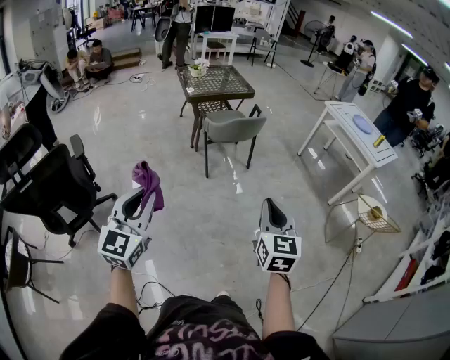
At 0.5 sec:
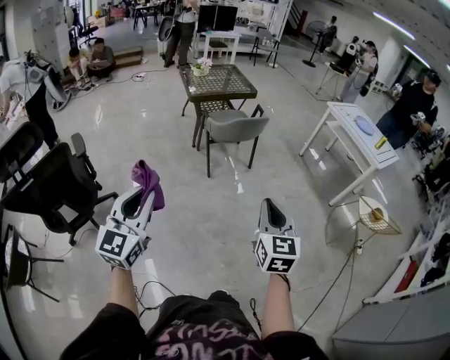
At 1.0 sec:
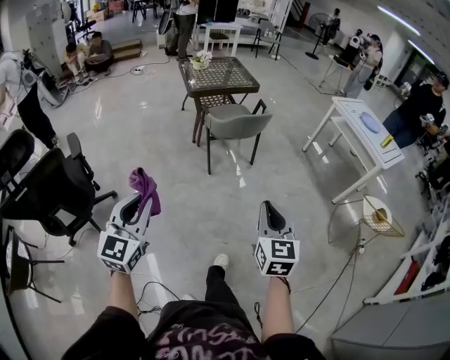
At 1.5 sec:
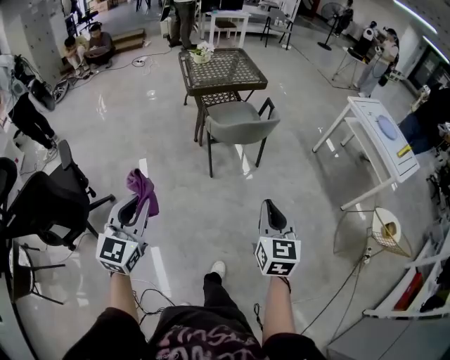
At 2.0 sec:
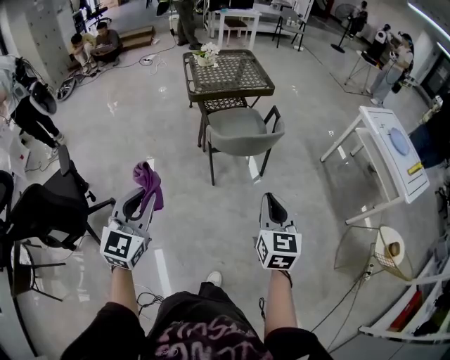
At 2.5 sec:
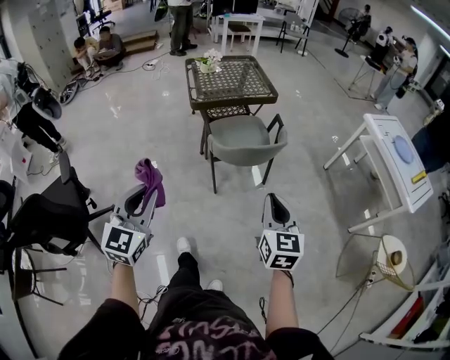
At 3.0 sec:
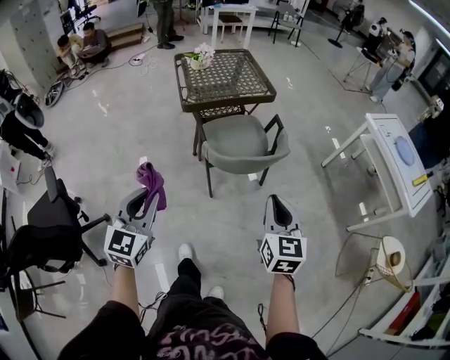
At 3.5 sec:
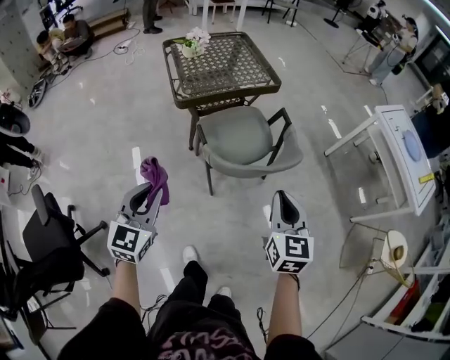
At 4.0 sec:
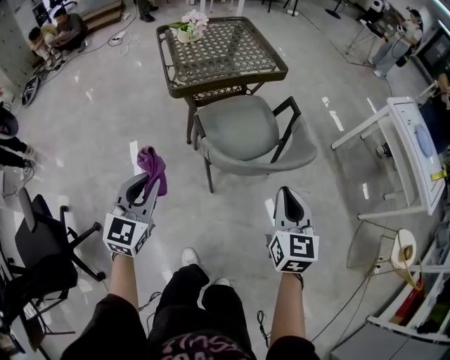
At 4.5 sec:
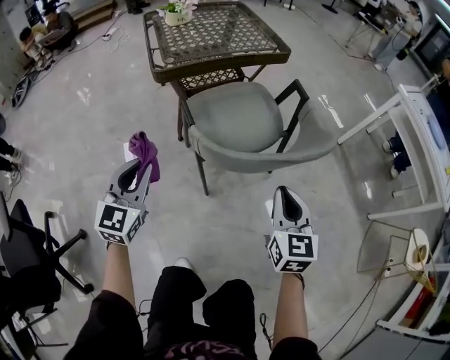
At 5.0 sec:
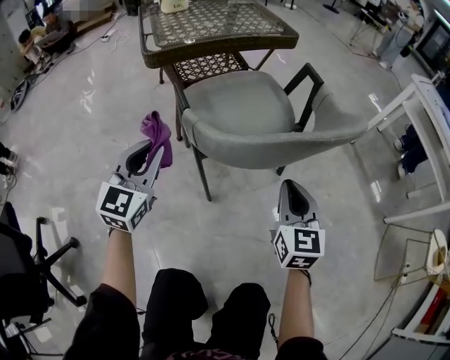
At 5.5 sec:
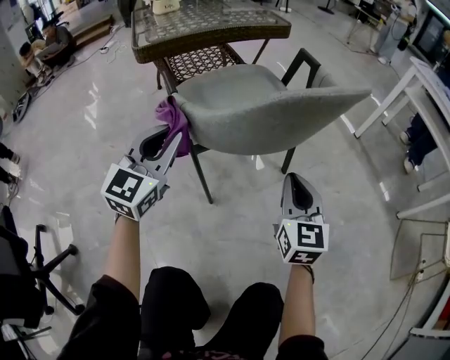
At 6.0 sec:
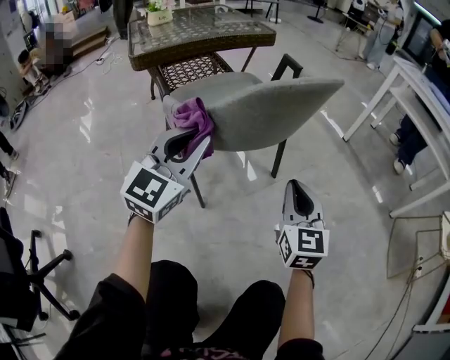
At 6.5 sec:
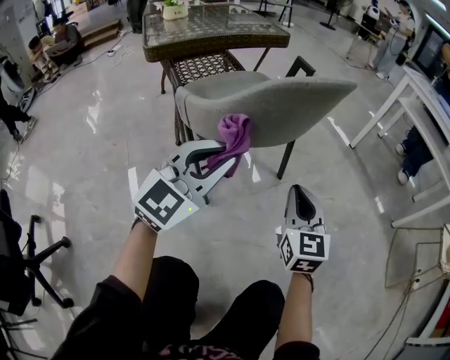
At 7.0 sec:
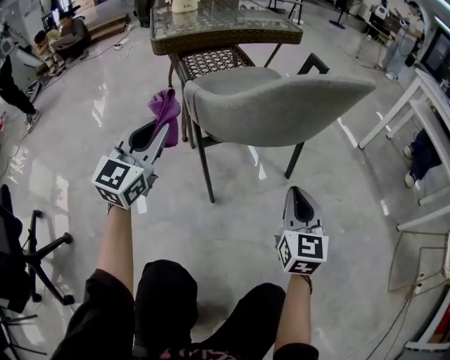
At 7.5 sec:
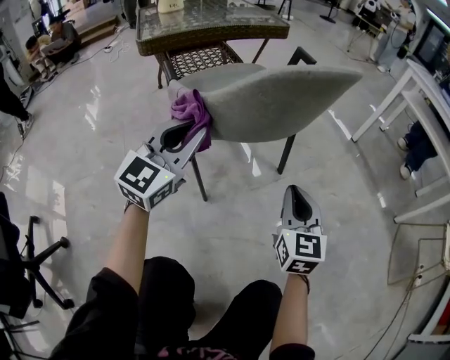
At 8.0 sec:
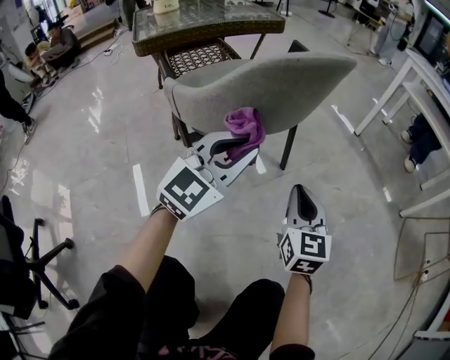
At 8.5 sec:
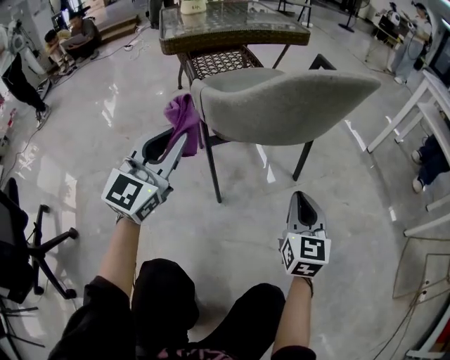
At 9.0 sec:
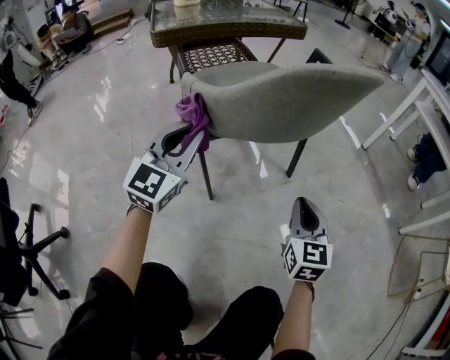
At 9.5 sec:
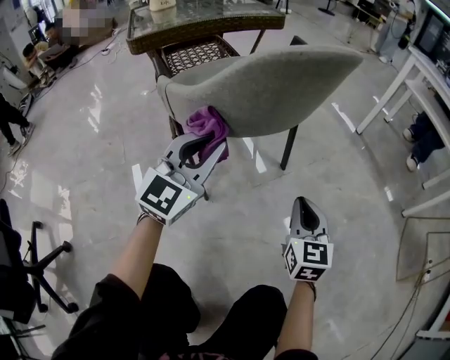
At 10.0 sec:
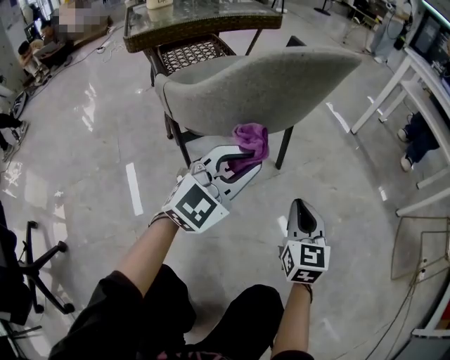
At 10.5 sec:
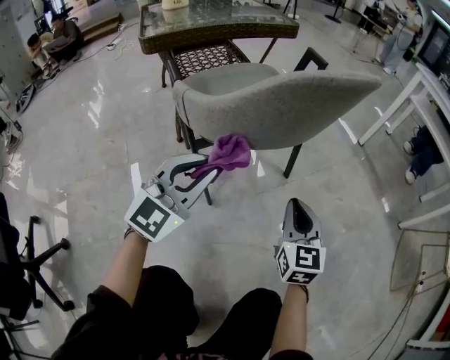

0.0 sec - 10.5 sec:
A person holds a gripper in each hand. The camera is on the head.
0.0 sec - 2.0 sec: The two grippers go about 35 cm forward.
2.0 sec - 4.0 sec: The grippers both shift forward and downward by approximately 40 cm.
4.0 sec - 6.5 sec: The right gripper shifts roughly 35 cm downward. Meanwhile the left gripper shifts roughly 35 cm downward and to the right, and swivels approximately 30 degrees.
6.5 sec - 8.5 sec: The left gripper swings left and right, approximately 25 cm each way, with 2 reversals, and swivels approximately 20 degrees. Meanwhile the right gripper heads downward, covering some 5 cm.
8.5 sec - 10.5 sec: The left gripper shifts approximately 10 cm to the right and downward.

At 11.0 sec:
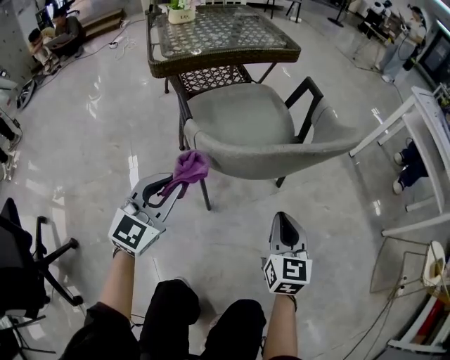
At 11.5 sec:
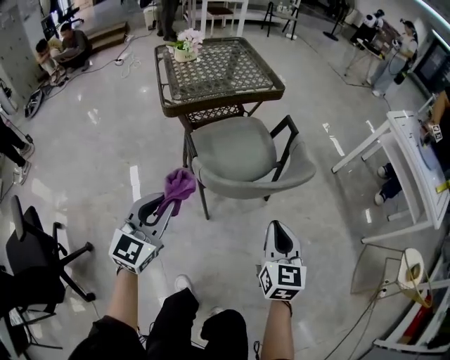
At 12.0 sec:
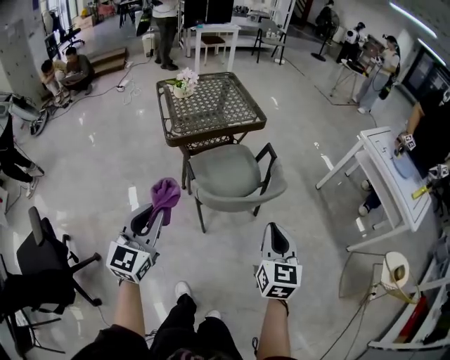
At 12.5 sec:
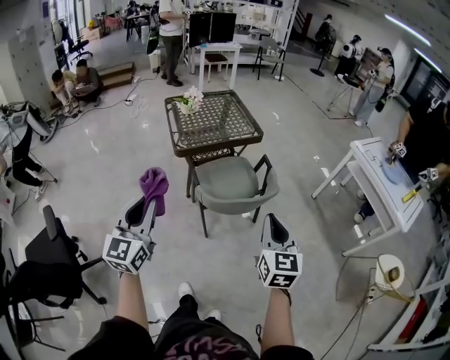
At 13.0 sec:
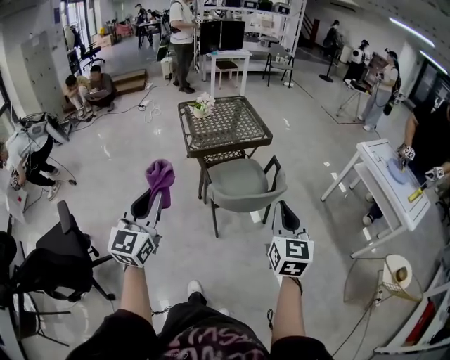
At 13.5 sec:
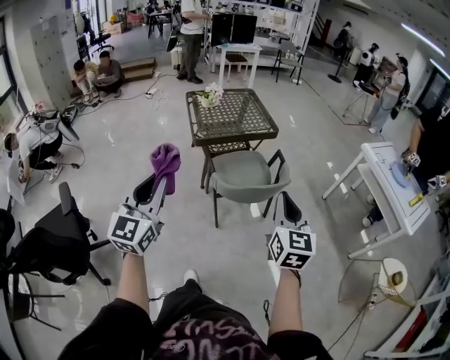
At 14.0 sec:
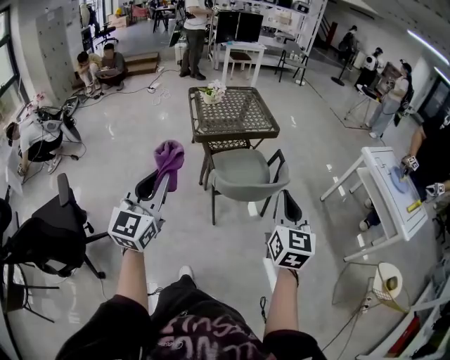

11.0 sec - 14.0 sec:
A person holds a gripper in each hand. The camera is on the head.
11.0 sec - 12.5 sec: The left gripper travels upward and backward by some 50 cm, and rotates about 20 degrees; the right gripper shifts about 50 cm upward.
12.5 sec - 14.0 sec: The left gripper travels backward by some 5 cm; the right gripper moves upward, roughly 5 cm.

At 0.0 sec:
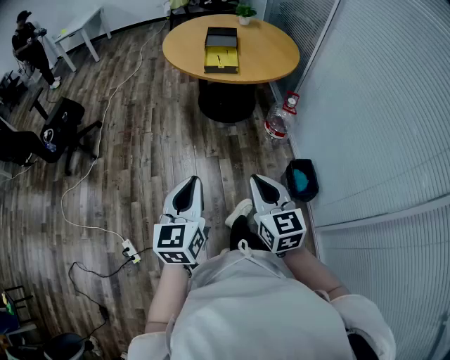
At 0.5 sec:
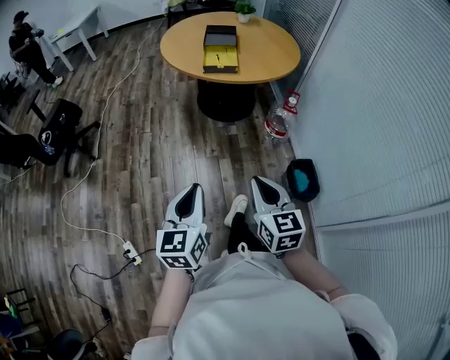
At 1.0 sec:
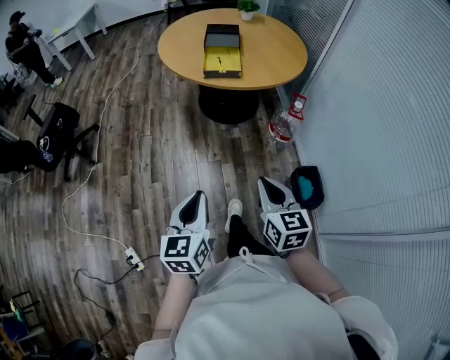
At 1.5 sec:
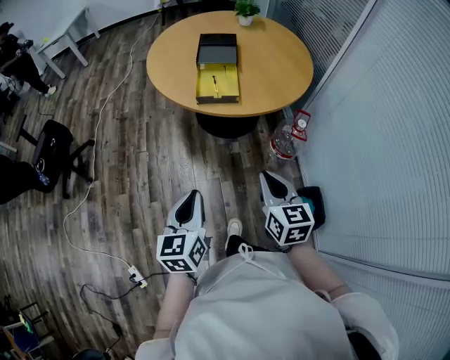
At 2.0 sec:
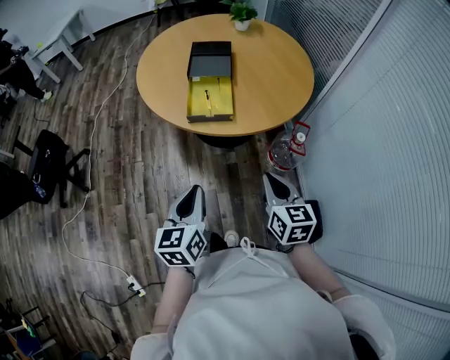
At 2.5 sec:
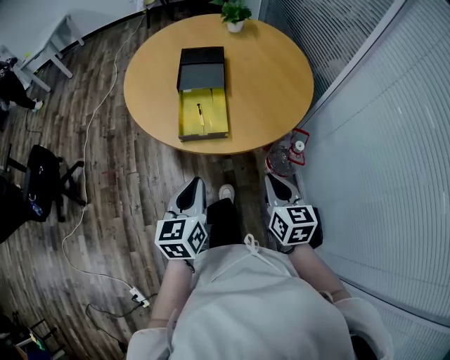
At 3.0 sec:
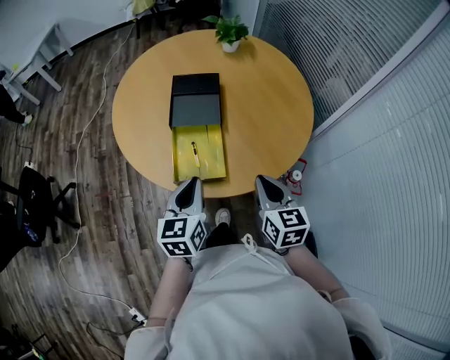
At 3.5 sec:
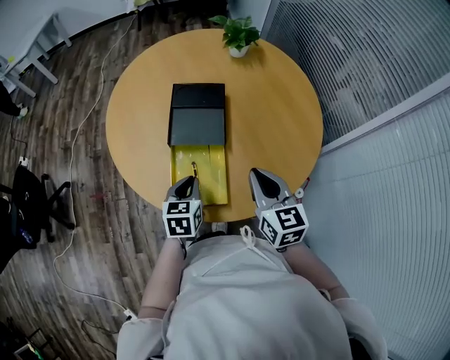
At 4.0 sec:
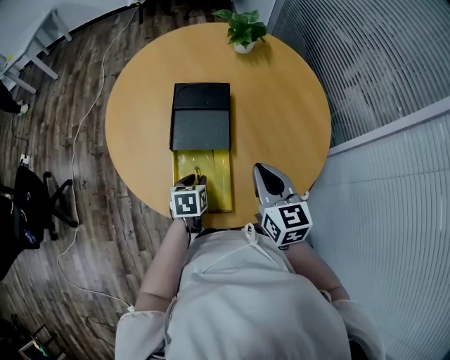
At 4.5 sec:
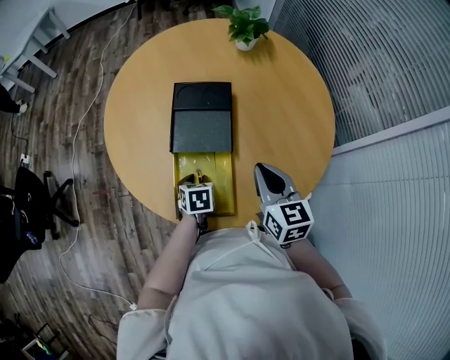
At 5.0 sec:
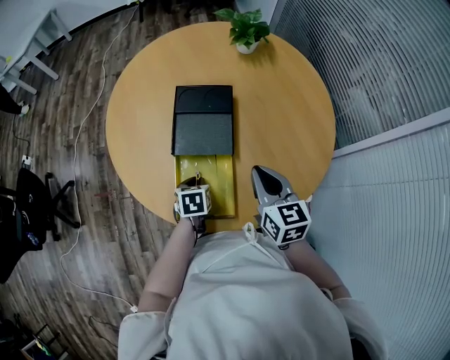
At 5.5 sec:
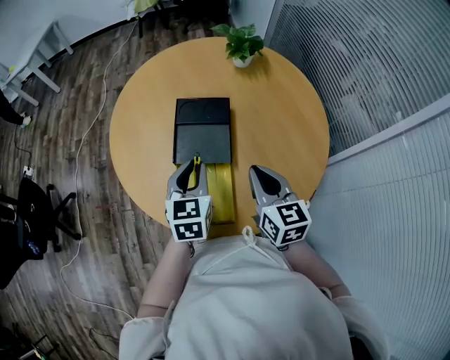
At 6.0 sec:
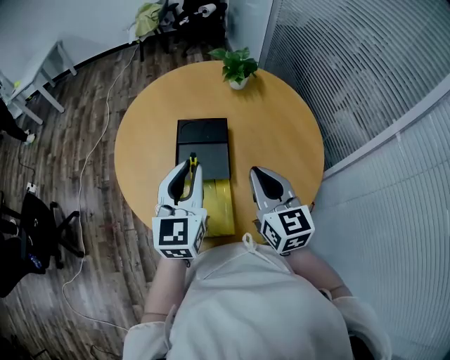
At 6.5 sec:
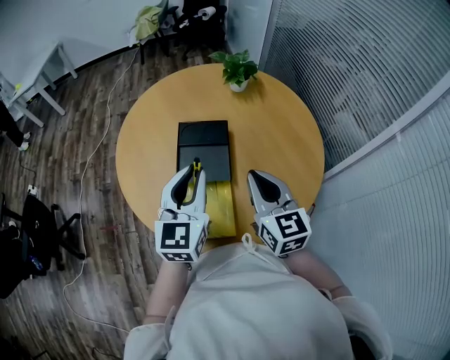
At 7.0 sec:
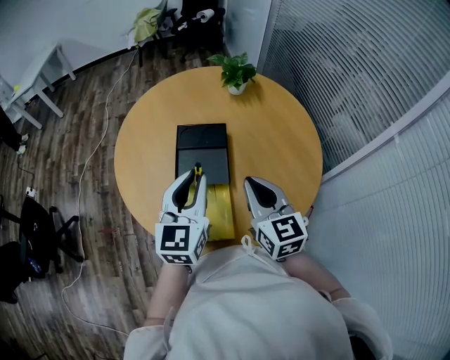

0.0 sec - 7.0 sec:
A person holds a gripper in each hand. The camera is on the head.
0.0 sec - 2.0 sec: The pair of grippers is taken forward, roughly 50 cm.
2.0 sec - 3.5 sec: Both grippers travel together forward, roughly 40 cm. The left gripper turns by roughly 20 degrees.
3.5 sec - 5.0 sec: The right gripper goes about 5 cm forward; the left gripper heads downward and forward, covering roughly 10 cm, and turns by some 20 degrees.
5.0 sec - 7.0 sec: The right gripper moves upward, roughly 10 cm. The left gripper is displaced upward by approximately 30 cm, and angles its fingers upward, by some 50 degrees.

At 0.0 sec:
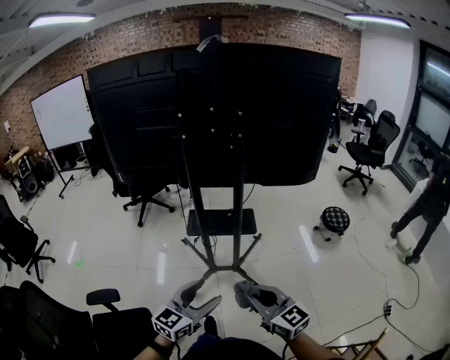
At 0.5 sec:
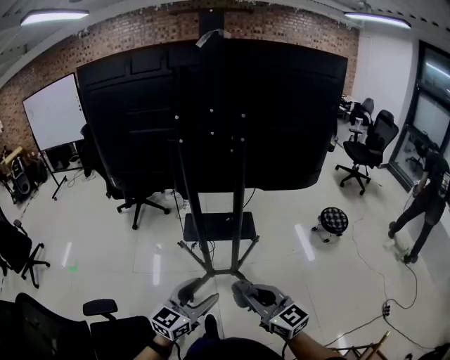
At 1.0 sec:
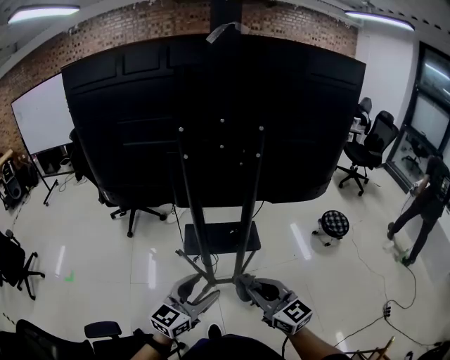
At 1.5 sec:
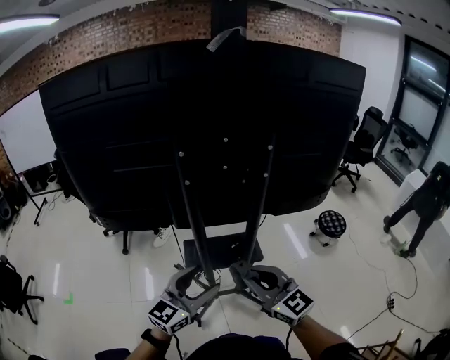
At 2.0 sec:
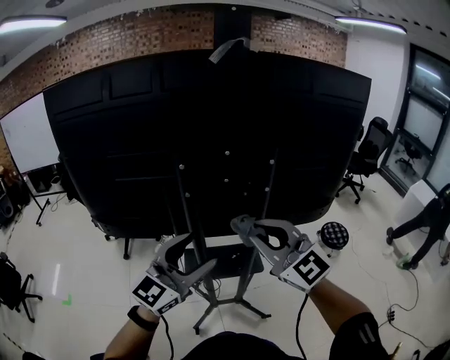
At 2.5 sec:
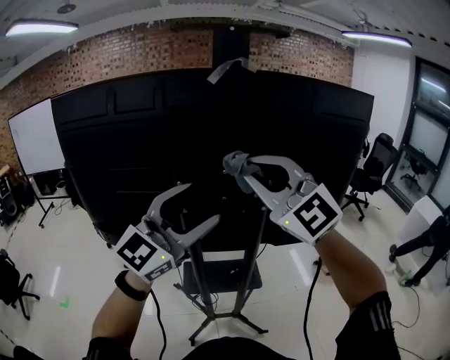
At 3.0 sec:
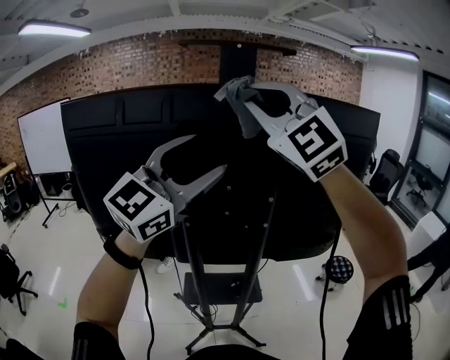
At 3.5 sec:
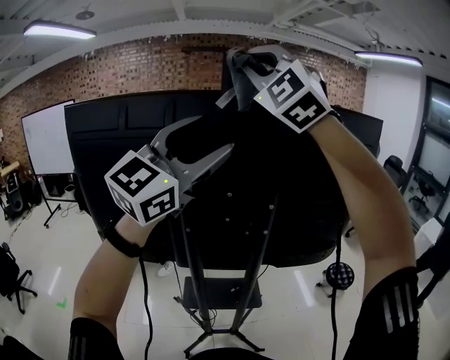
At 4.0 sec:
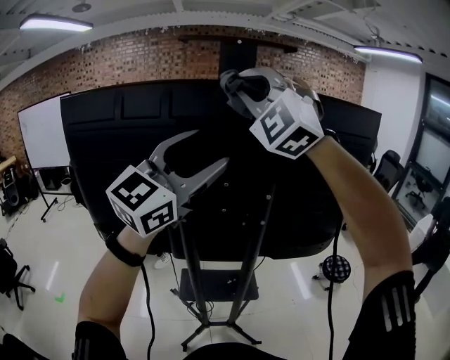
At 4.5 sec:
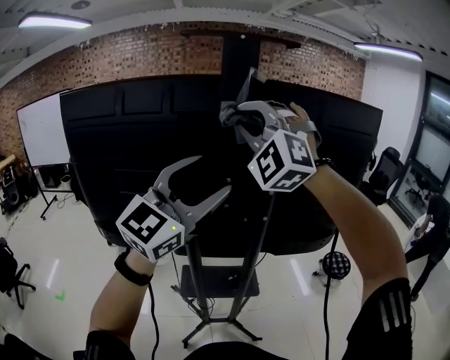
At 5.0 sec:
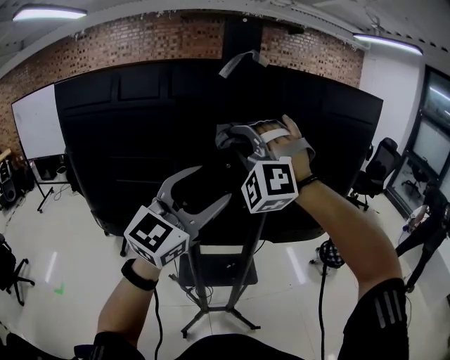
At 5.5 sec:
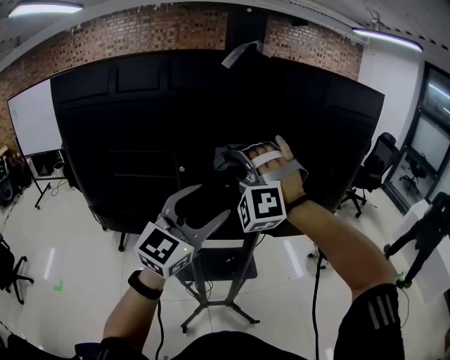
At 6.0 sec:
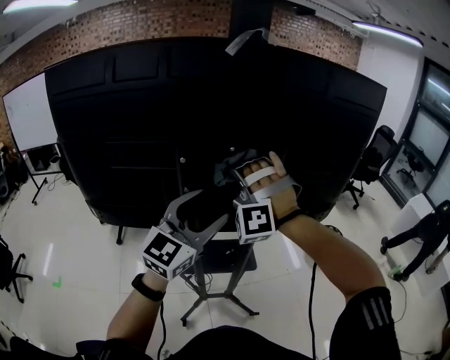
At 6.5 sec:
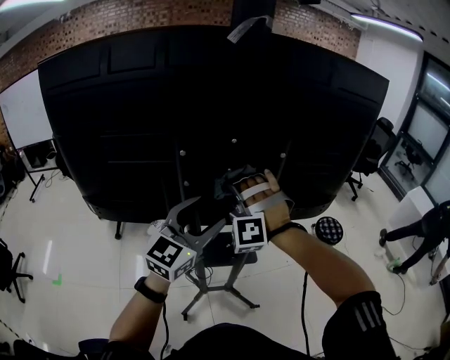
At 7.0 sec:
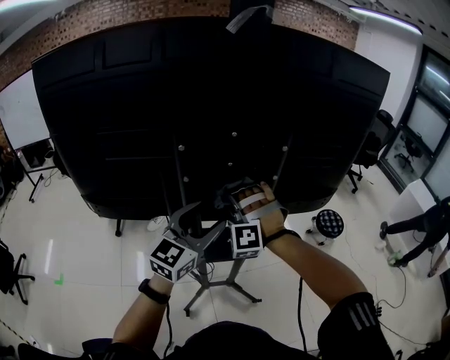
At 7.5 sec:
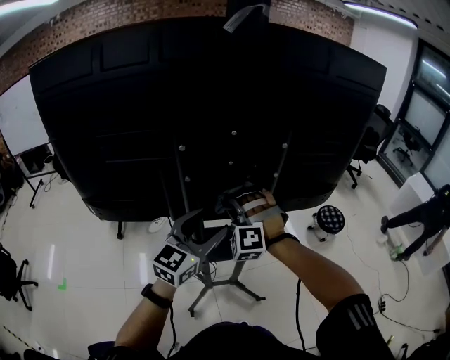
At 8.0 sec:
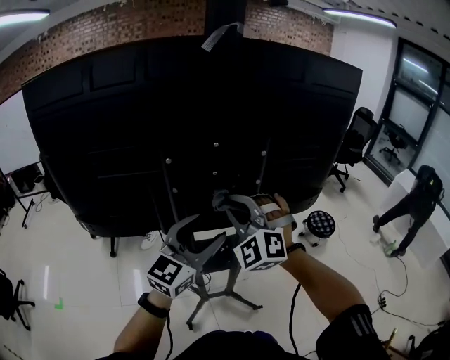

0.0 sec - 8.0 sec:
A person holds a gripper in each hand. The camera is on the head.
0.0 sec - 2.0 sec: Both grippers move forward and upward, some 40 cm. The left gripper turns by some 30 degrees. Meanwhile the right gripper swivels approximately 30 degrees.
2.0 sec - 4.0 sec: The right gripper shifts some 35 cm upward and forward, and twists some 50 degrees counterclockwise, seen from behind. The left gripper heads upward, covering approximately 25 cm.
4.0 sec - 6.0 sec: Both grippers move downward, roughly 25 cm. The right gripper swivels roughly 40 degrees.
6.0 sec - 8.0 sec: The left gripper goes about 5 cm downward, while the right gripper heads backward, covering some 5 cm, goes downward and returns, roughly 15 cm each way, and changes its angle by approximately 40 degrees.
